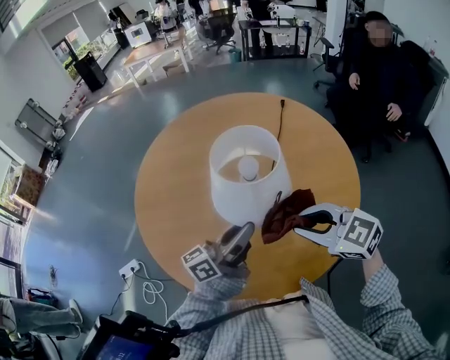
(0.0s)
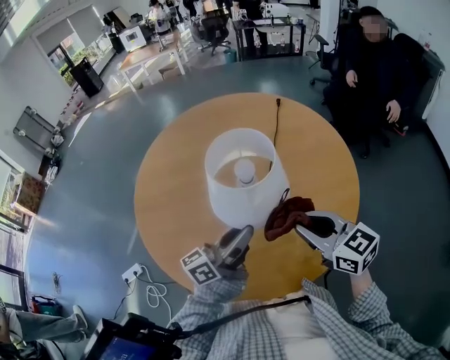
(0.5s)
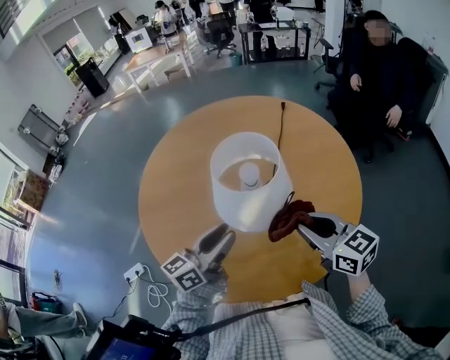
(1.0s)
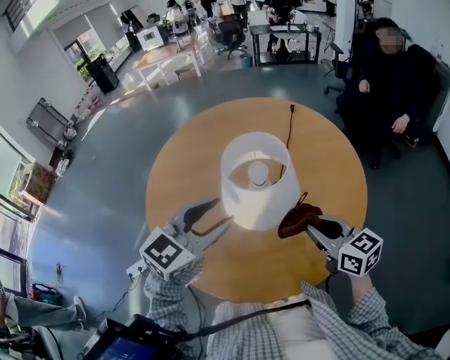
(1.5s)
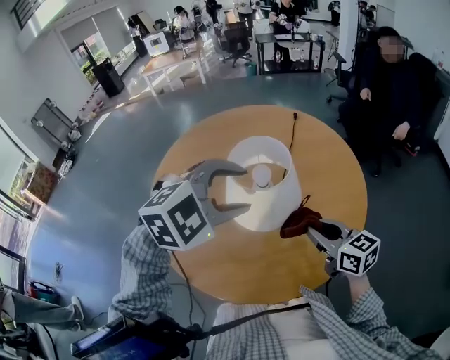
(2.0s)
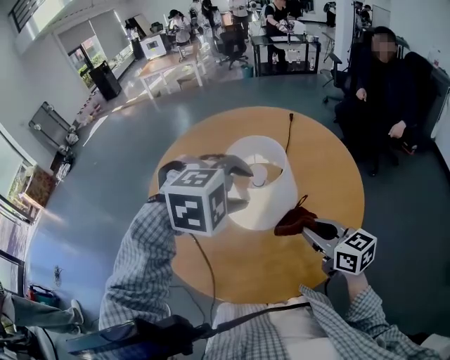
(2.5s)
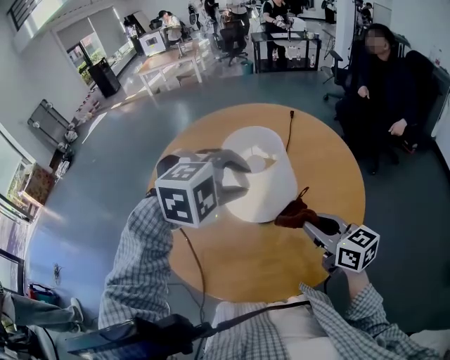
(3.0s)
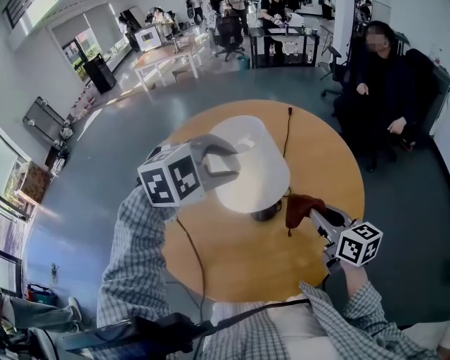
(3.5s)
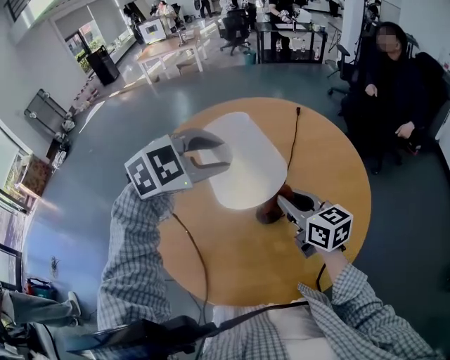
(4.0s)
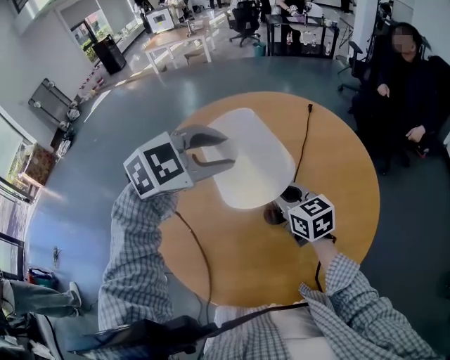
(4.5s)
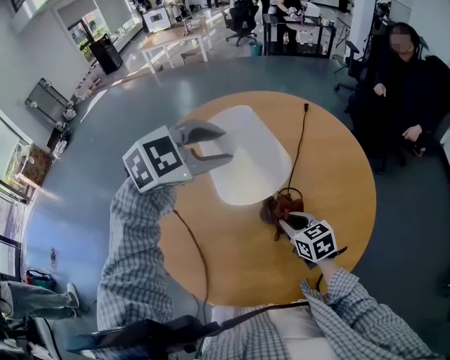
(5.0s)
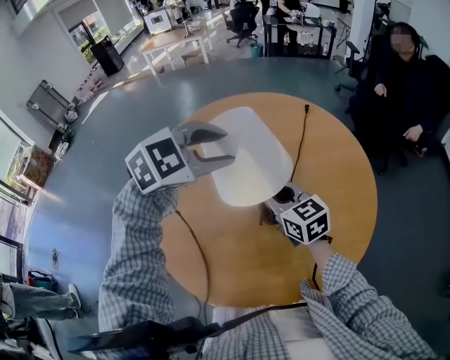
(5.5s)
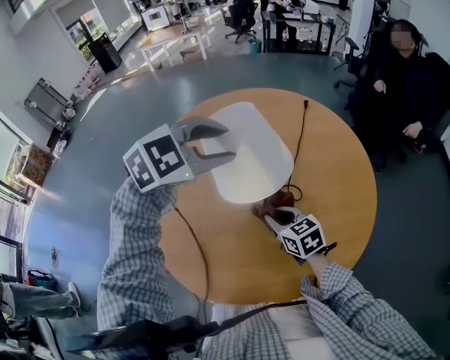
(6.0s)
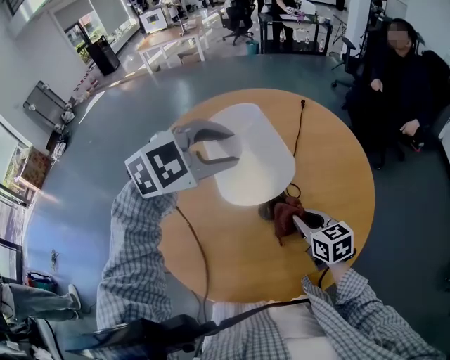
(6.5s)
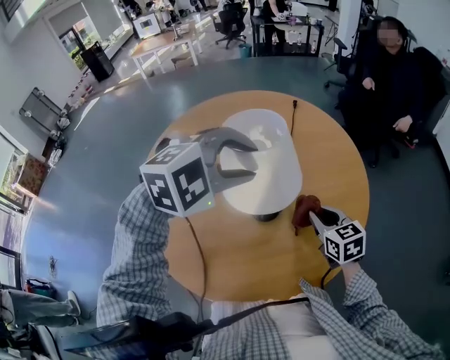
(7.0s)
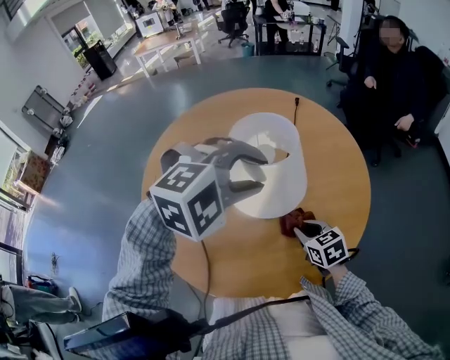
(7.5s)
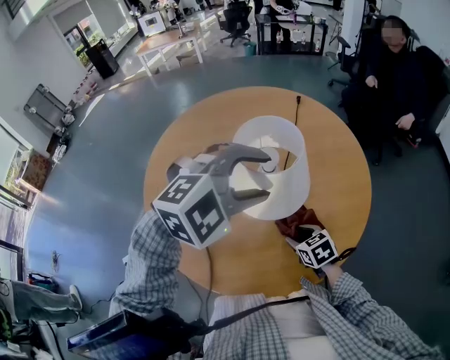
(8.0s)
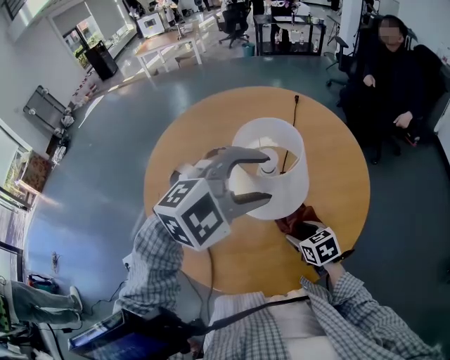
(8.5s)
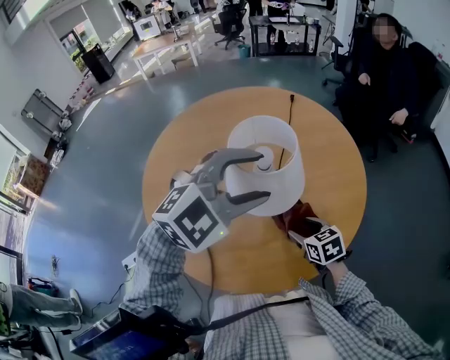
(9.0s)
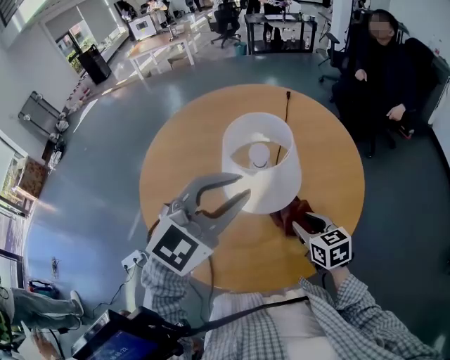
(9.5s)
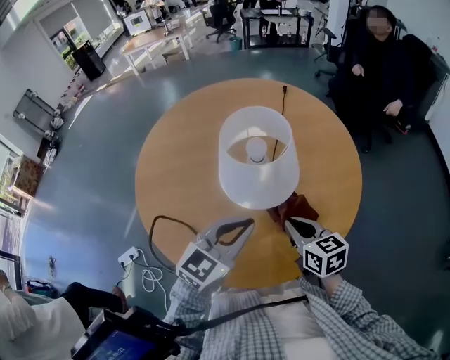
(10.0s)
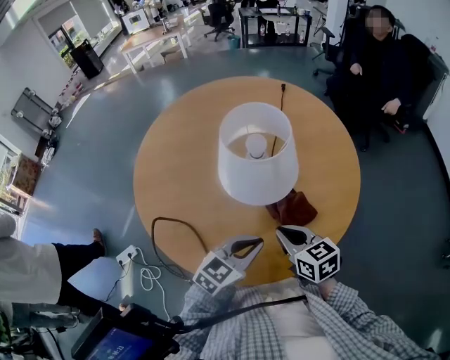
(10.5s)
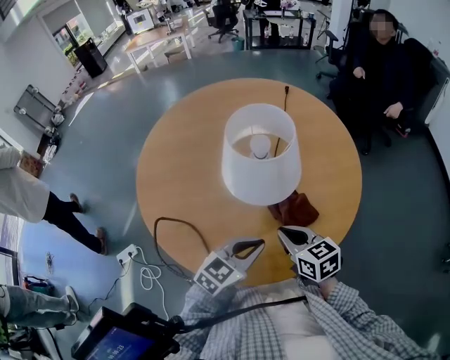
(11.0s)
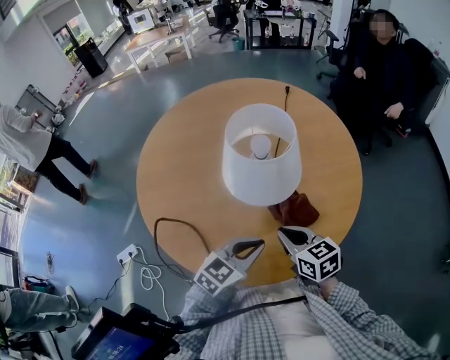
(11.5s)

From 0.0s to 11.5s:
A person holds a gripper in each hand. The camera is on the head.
From 0.0s to 2.0s: The left gripper moves upward, about 10 cm, angles its fingers downward, by about 60 degrees, and opens. Meanwhile the right gripper moves about 5 cm, and swivels some 40 degrees.
From 2.0s to 4.0s: Both grippers travel together forward and to the left, approximately 15 cm.
From 4.0s to 6.0s: The right gripper moves up and down over approximately 15 cm, changing direction 2 times, and swivels about 20 degrees.
From 6.0s to 7.5s: The two grippers go about 15 cm to the right and backward. The left gripper changes its angle by approximately 30 degrees.
From 7.5s to 9.5s: The left gripper heads backward, covering about 5 cm, tilts its fingers some 30 degrees upward, and opens and closes again. Meanwhile the right gripper changes place by approximately 5 cm, and opens, then closes again.
From 9.5s to 11.5s: The left gripper goes about 25 cm downward, swivels some 40 degrees, and closes its fingers. Meanwhile the right gripper heads backward and to the left, covering approximately 10 cm, and closes.

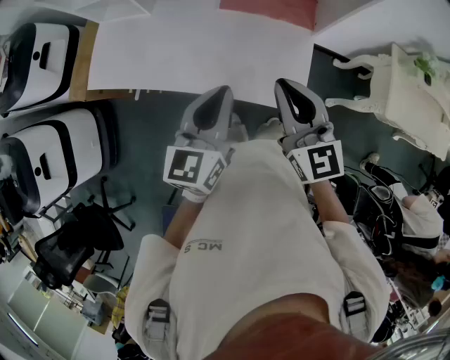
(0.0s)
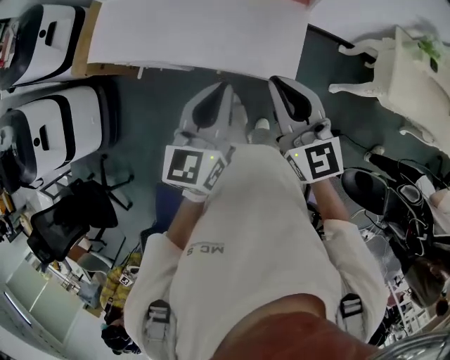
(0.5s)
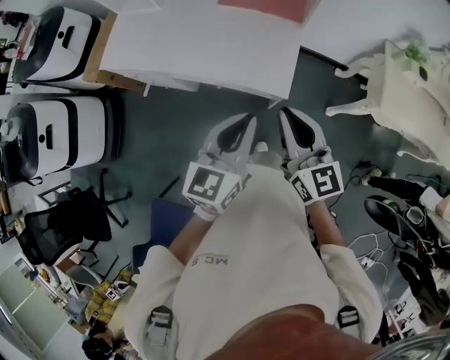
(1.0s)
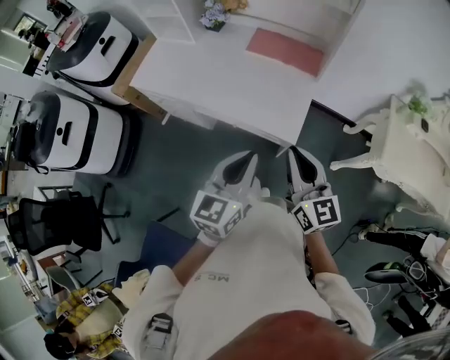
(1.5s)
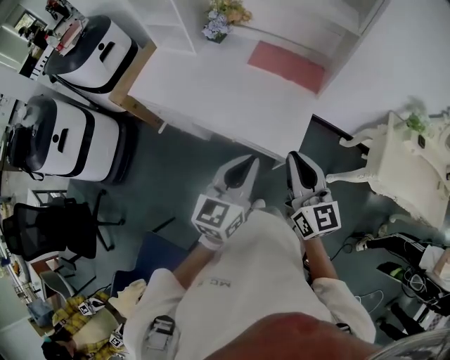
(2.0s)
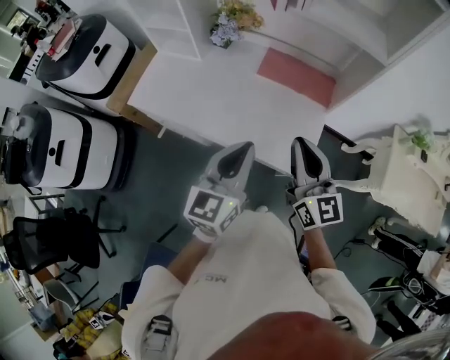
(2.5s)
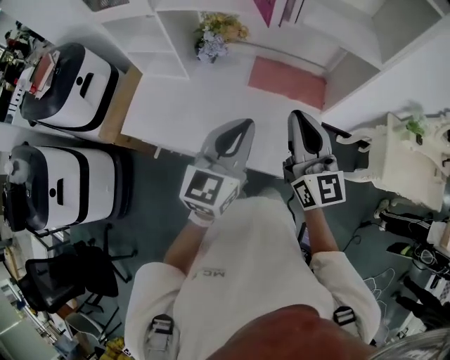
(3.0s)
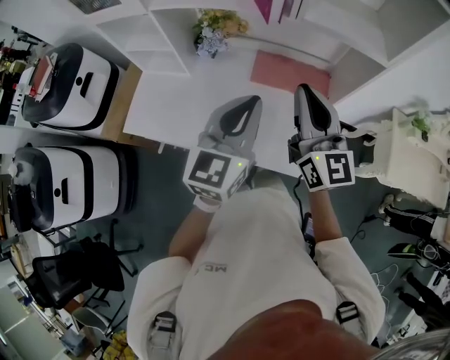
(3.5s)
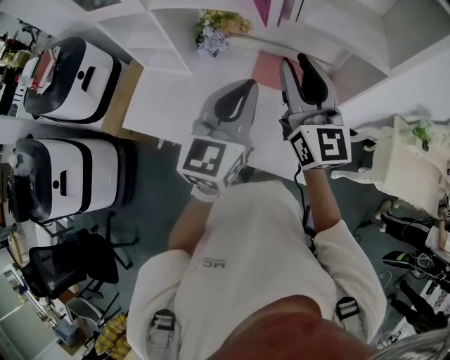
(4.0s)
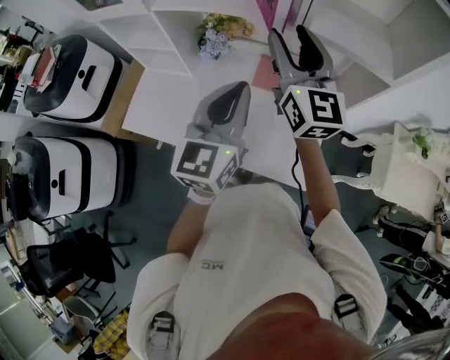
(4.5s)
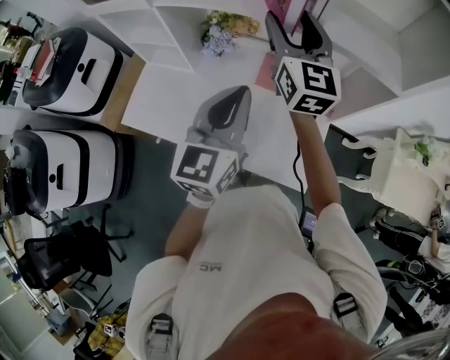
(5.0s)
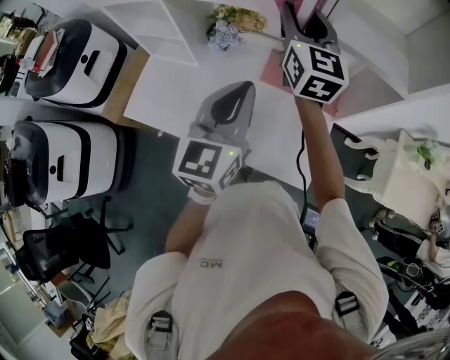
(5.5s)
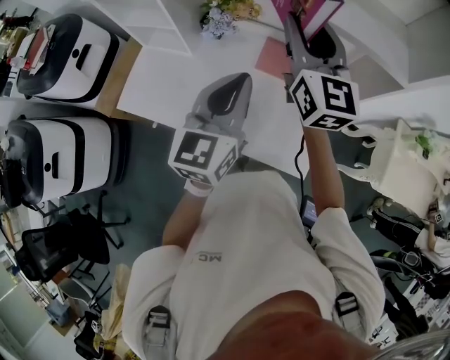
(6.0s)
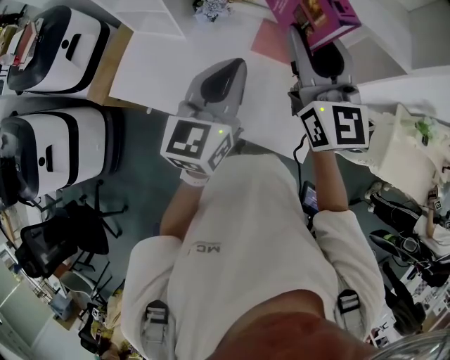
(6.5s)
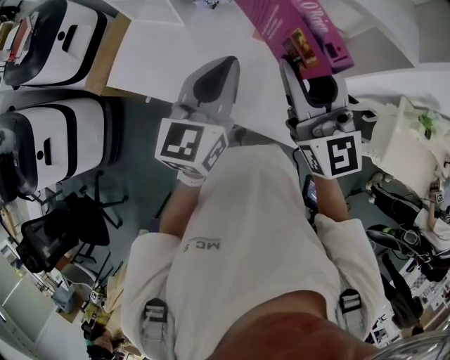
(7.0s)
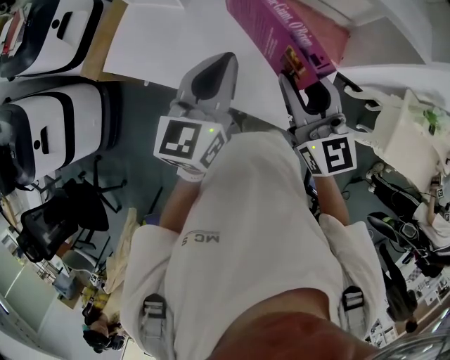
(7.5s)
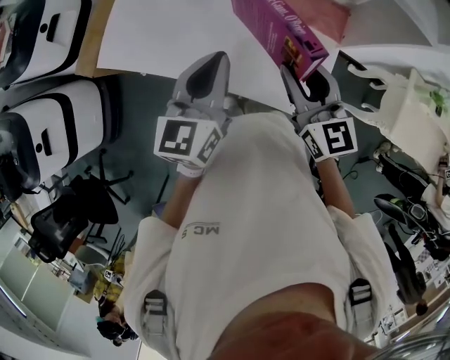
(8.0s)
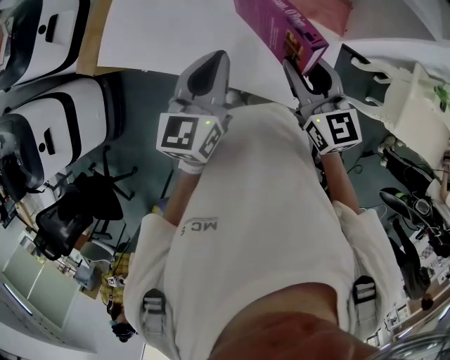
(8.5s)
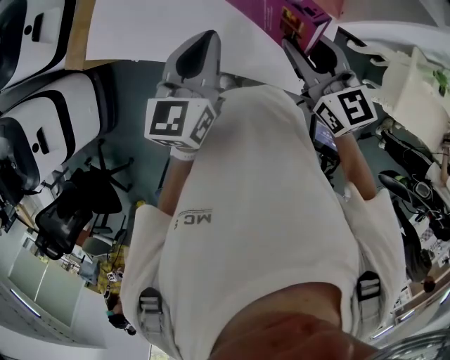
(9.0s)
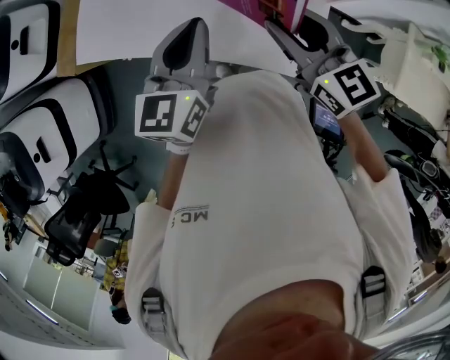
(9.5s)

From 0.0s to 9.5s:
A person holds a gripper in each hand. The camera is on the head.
From 0.0s to 2.0s: Both grippers travel together backward and to the right, about 20 cm.
From 2.0s to 4.0s: The right gripper travels forward, upward and to the left by roughly 40 cm, and opens up. The left gripper shifts roughly 30 cm forward.
From 4.0s to 5.5s: The right gripper shifts about 15 cm forward, and opens, then closes once more. Meanwhile the left gripper ends up some 5 cm from where it was.
From 5.5s to 7.5s: The right gripper heads backward and downward, covering about 25 cm, and rotates approximately 20 degrees. The left gripper shifts about 10 cm downward.
From 7.5s to 9.5s: Both grippers move downward, about 5 cm.

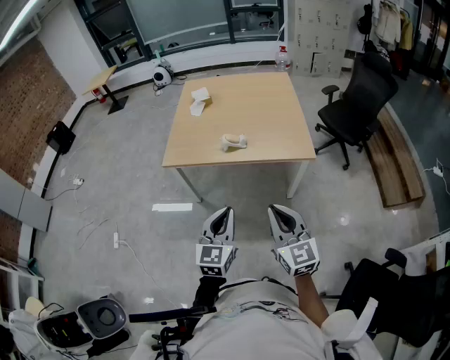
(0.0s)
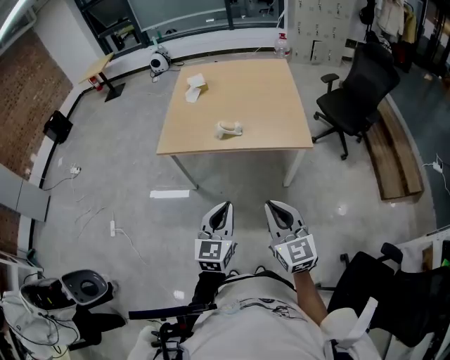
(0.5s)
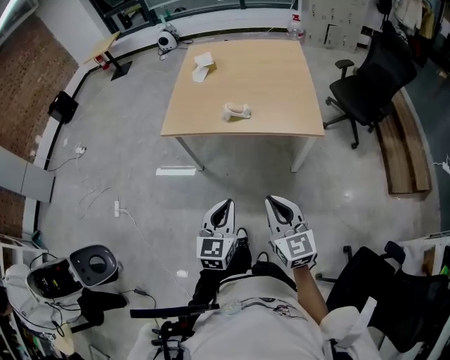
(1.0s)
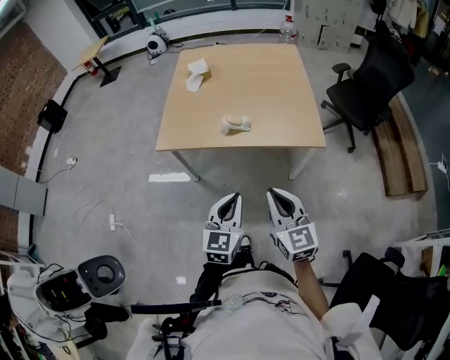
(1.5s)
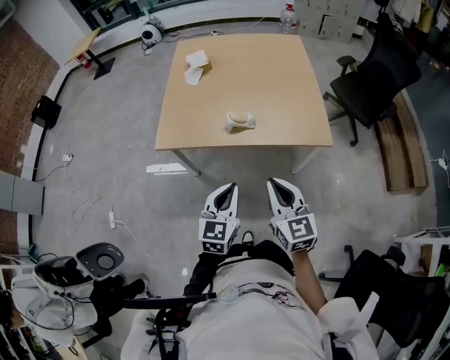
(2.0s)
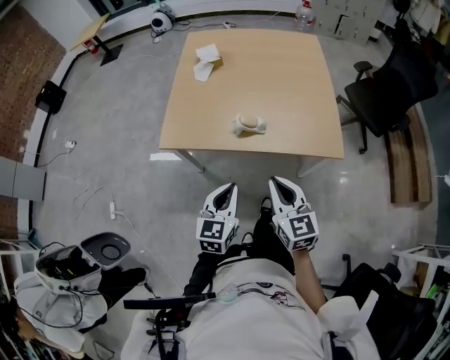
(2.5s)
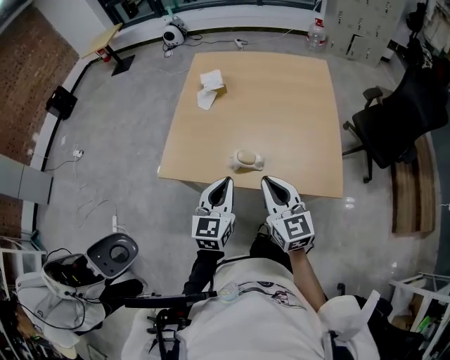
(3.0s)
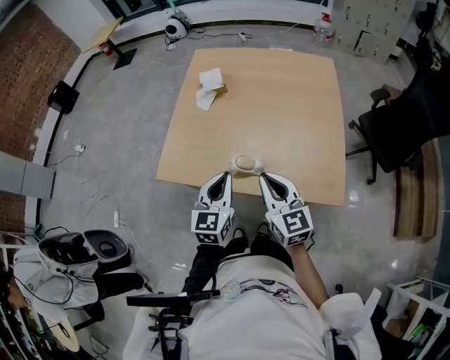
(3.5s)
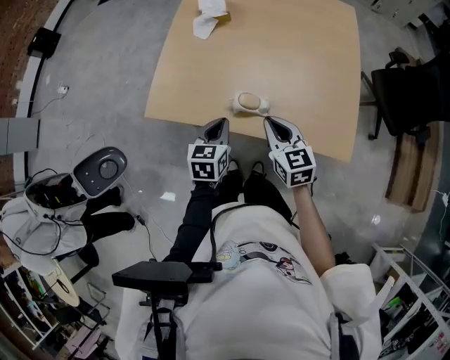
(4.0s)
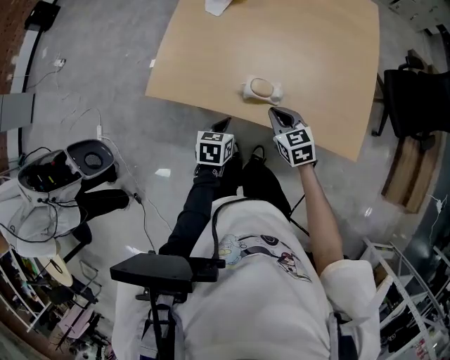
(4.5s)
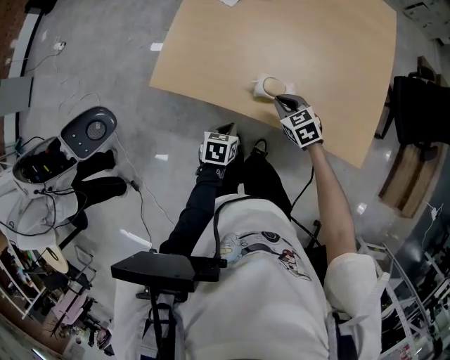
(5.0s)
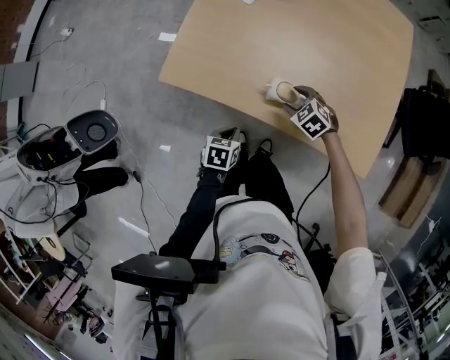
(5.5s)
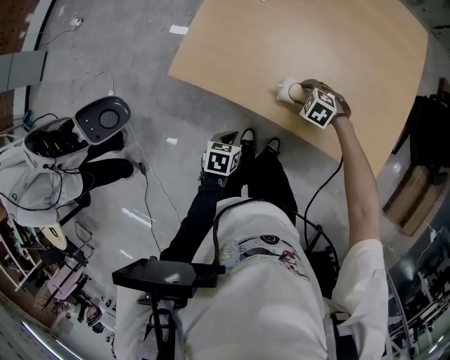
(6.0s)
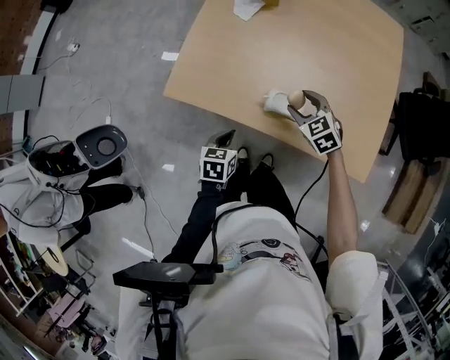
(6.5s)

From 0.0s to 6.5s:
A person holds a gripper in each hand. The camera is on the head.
From 0.0s to 2.0s: Both grippers move forward, approximately 20 cm.
From 2.0s to 4.5s: Both grippers travel together forward and downward, approximately 35 cm. The left gripper angles its fingers downward, by roughly 30 degrees; the right gripper swivels approximately 40 degrees.
From 4.5s to 6.5s: The right gripper moves forward, approximately 10 cm, moves about 15 cm downward and comes back, changes its angle by about 20 degrees, and opens; the left gripper moves to the left, approximately 5 cm.
